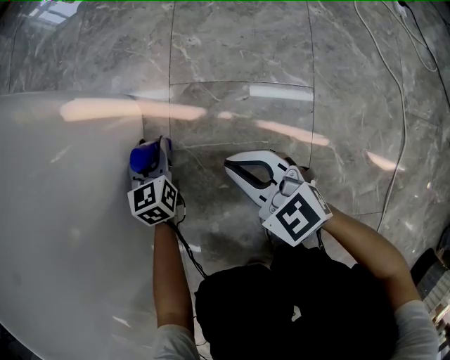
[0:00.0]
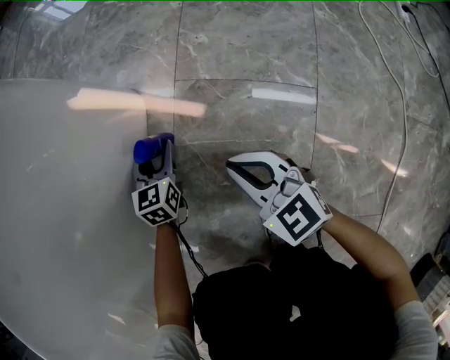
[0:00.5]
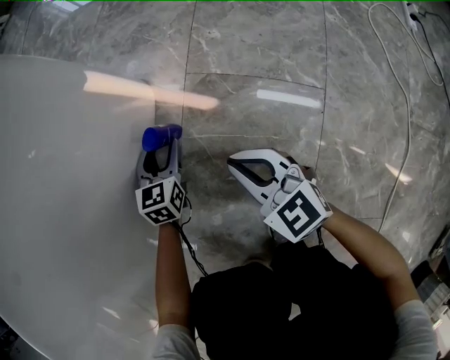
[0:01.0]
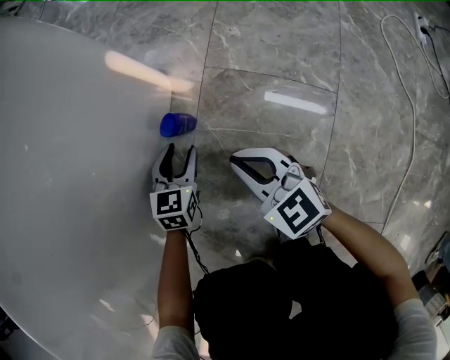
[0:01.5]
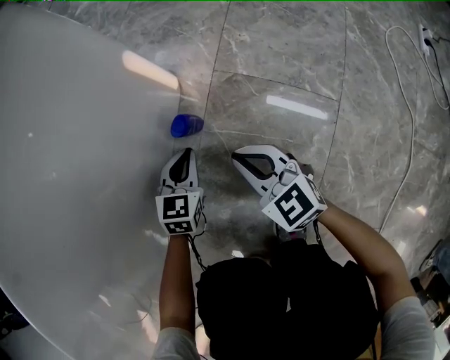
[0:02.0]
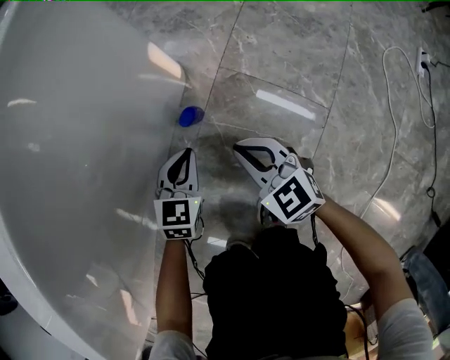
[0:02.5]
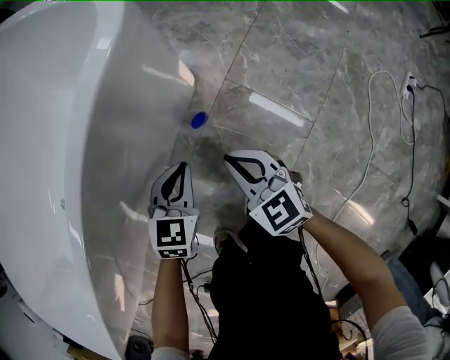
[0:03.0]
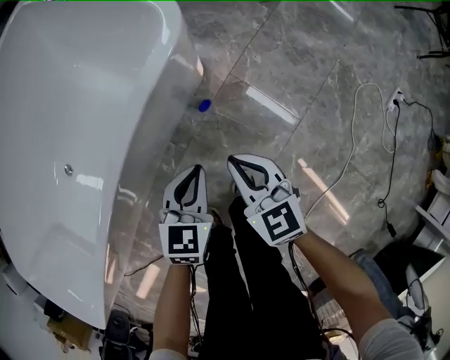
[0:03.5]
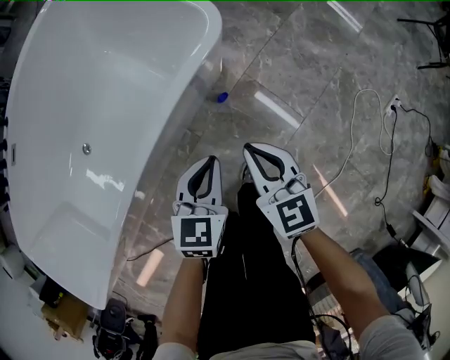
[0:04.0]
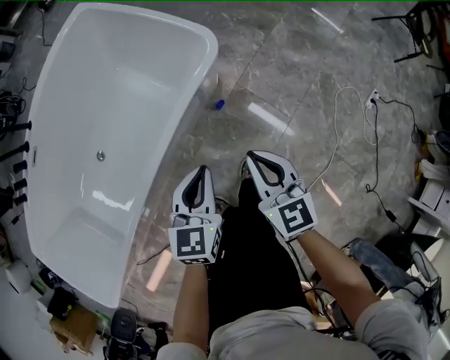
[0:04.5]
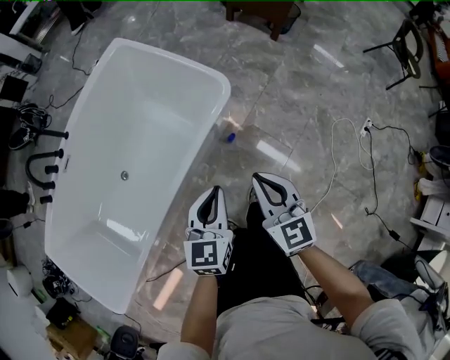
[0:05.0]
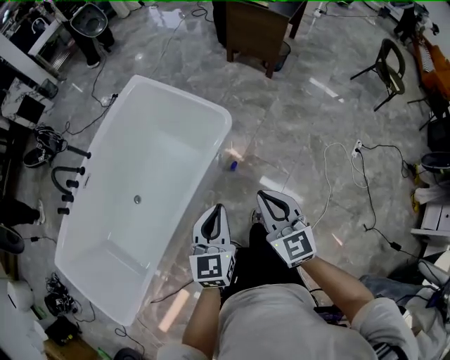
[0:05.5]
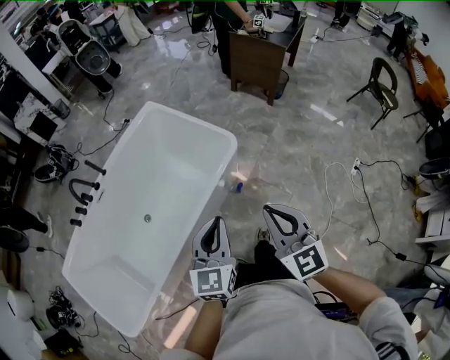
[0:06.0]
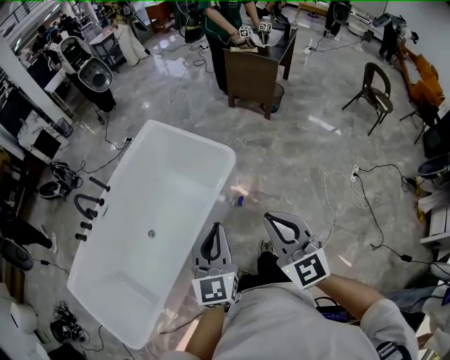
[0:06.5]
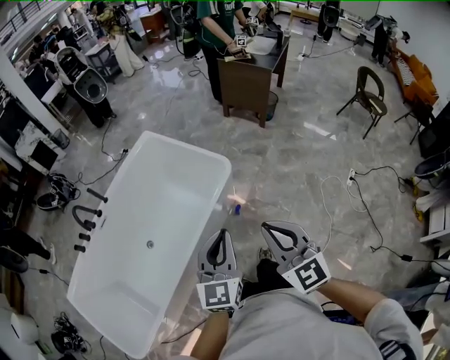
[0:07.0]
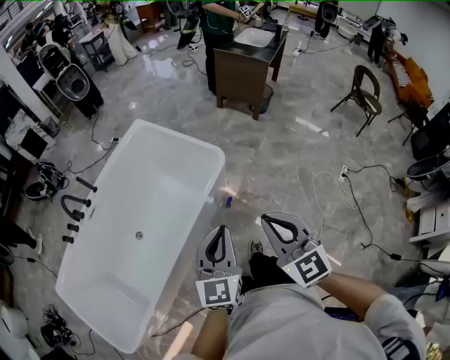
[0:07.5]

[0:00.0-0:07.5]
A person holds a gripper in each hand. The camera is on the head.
0:00.0 to 0:02.0: The left gripper goes roughly 10 cm backward, and closes up, while the right gripper goes roughly 5 cm to the left.
0:02.0 to 0:04.0: The two grippers go about 50 cm upward. The left gripper turns by about 20 degrees.
0:04.0 to 0:05.5: Both grippers travel together upward, roughly 40 cm.
0:05.5 to 0:07.5: The left gripper travels upward by roughly 10 cm; the right gripper goes roughly 15 cm upward and backward.

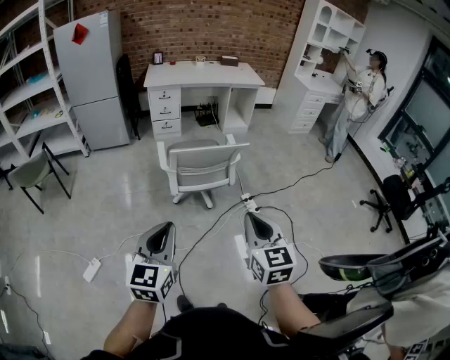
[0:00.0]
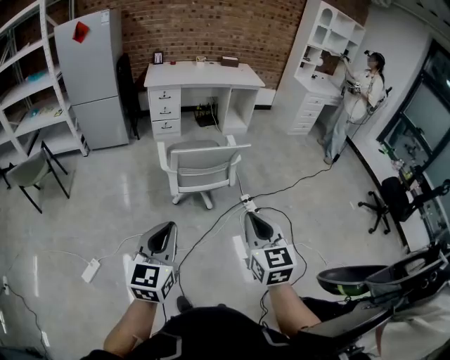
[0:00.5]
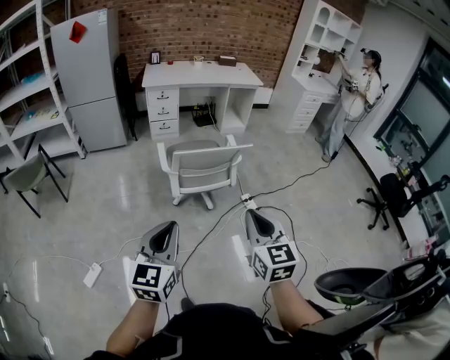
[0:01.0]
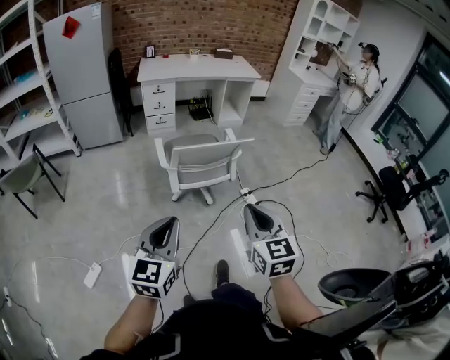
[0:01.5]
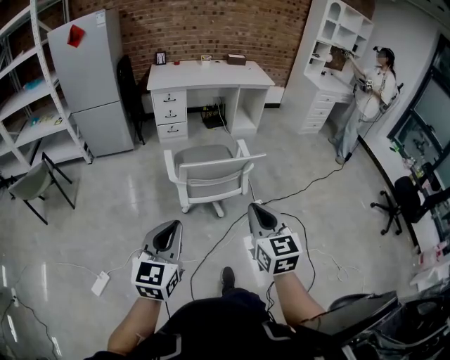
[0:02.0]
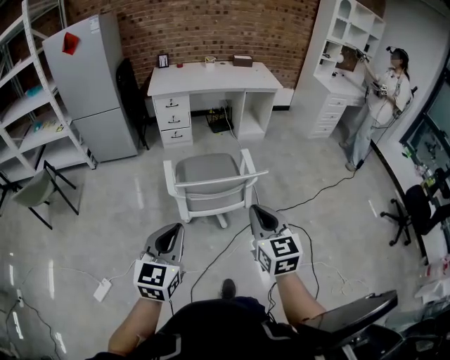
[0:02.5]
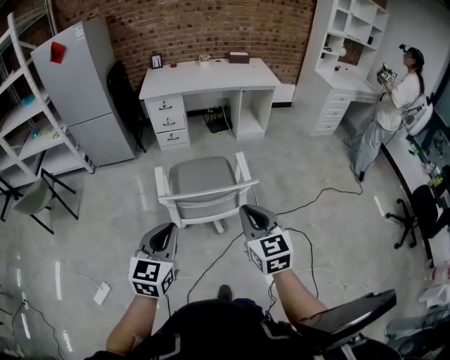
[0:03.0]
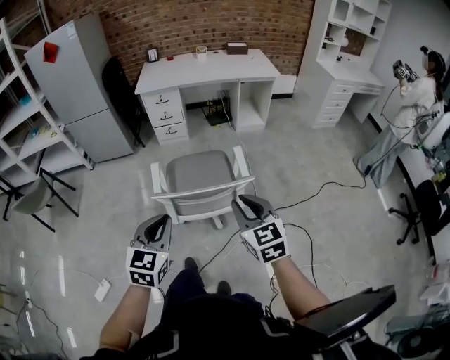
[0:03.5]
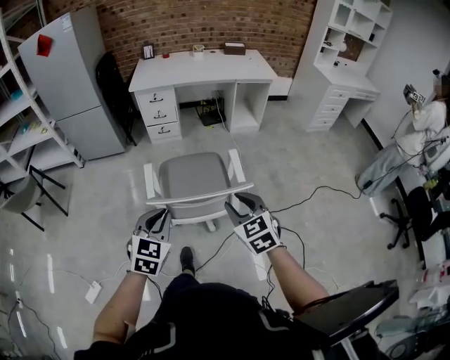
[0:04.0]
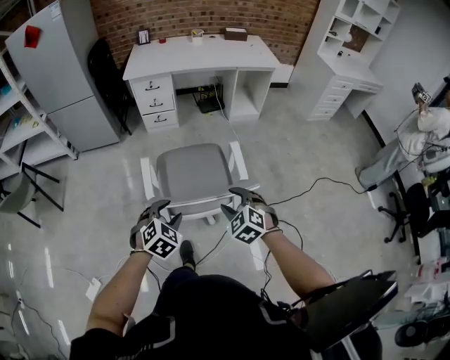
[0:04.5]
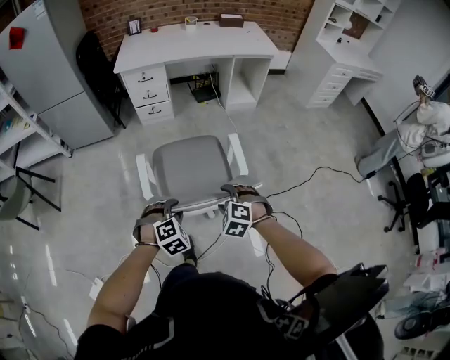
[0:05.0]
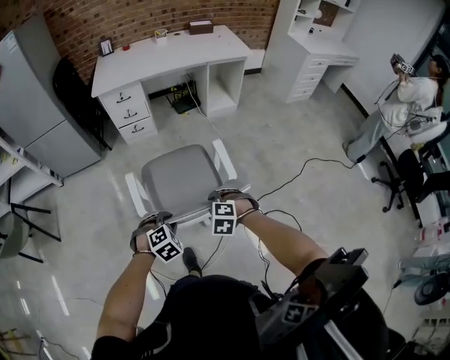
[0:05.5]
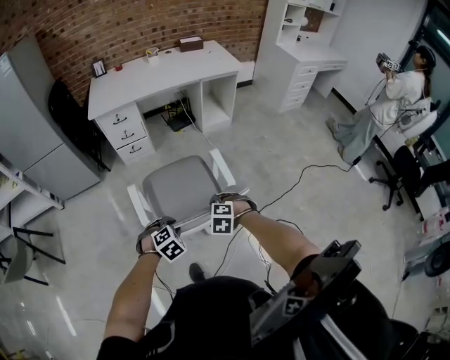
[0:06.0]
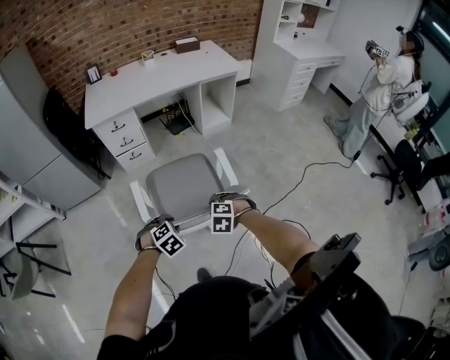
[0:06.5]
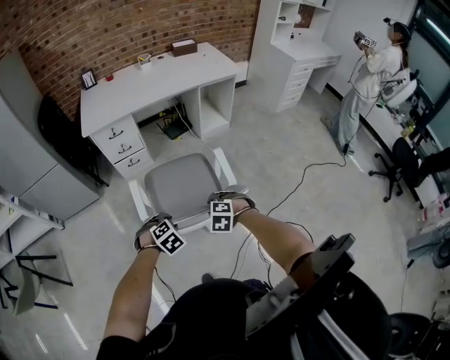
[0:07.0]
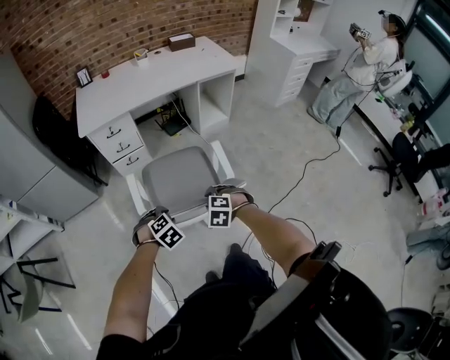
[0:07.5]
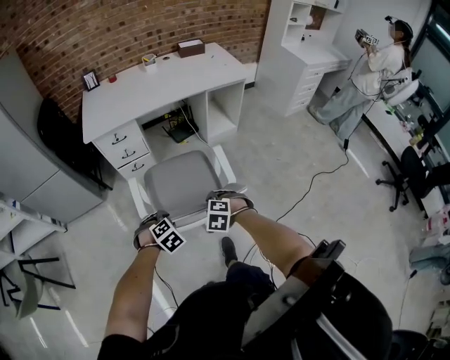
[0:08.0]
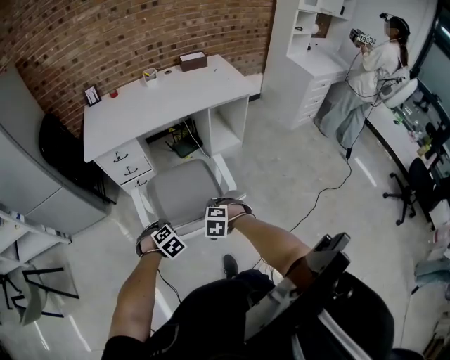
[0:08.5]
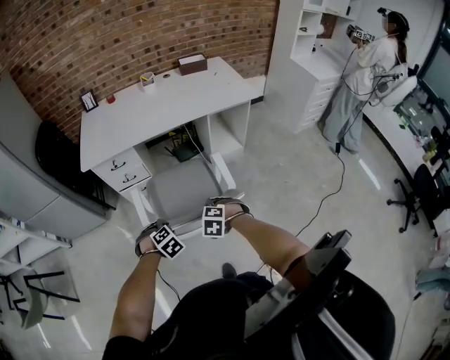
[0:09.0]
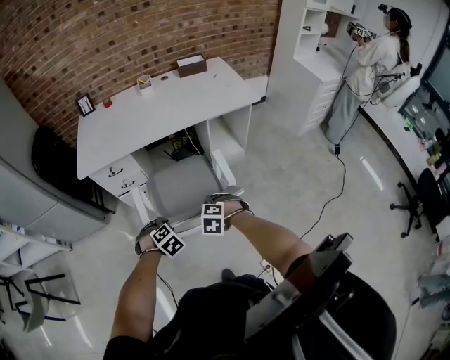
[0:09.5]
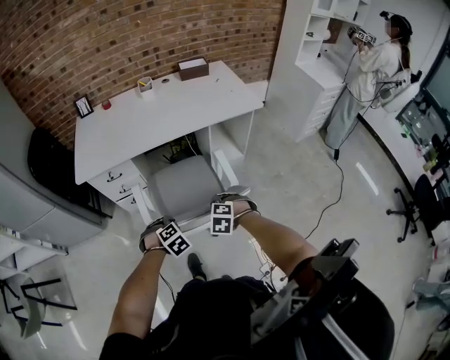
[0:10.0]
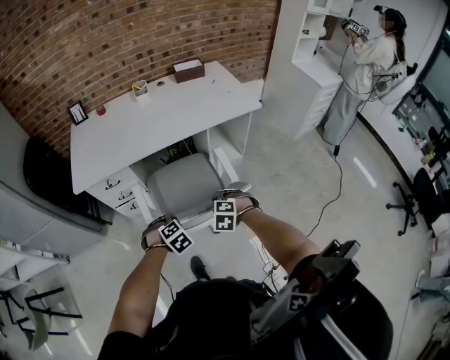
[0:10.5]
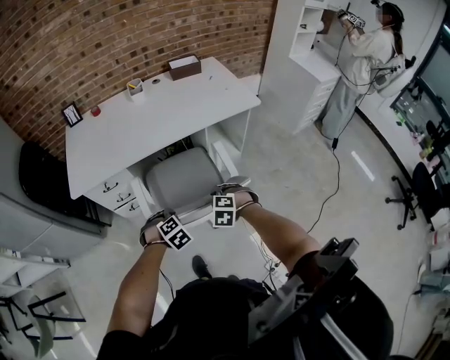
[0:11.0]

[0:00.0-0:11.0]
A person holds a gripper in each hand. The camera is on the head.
0:00.0 to 0:02.0: The left gripper heads forward, covering roughly 10 cm, while the right gripper travels forward and to the left by some 15 cm.
0:02.0 to 0:03.5: Both grippers travel together forward and to the right, roughly 25 cm.
0:03.5 to 0:05.5: The two grippers go approximately 30 cm downward and forward. The left gripper tips its fingers downward by approximately 40 degrees, and opens its fingers; the right gripper tips its fingers downward by approximately 50 degrees, and opens, then closes once more.
0:05.5 to 0:07.5: The two grippers go approximately 20 cm forward.
0:07.5 to 0:09.0: Both grippers move forward and to the right, roughly 20 cm.
0:09.0 to 0:11.0: The two grippers go approximately 20 cm forward and to the right.

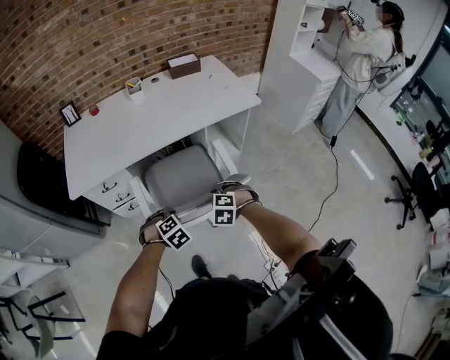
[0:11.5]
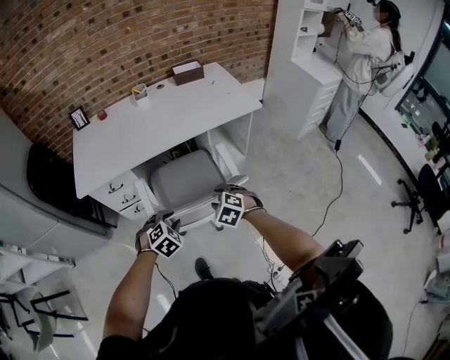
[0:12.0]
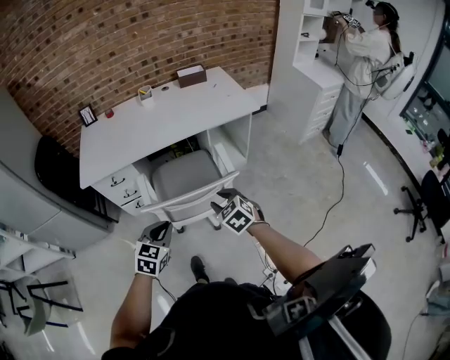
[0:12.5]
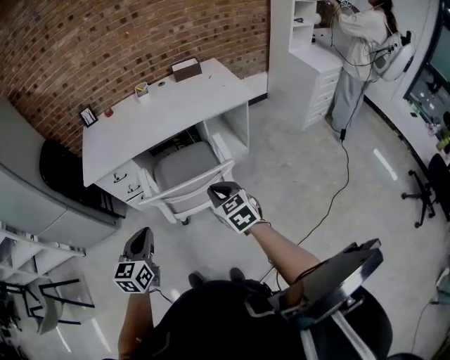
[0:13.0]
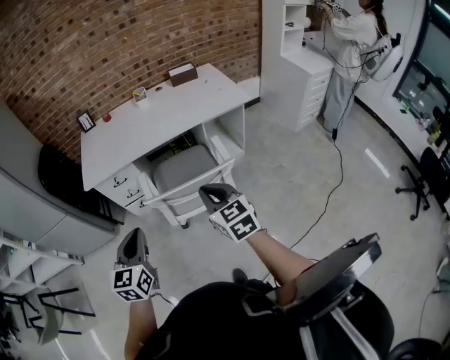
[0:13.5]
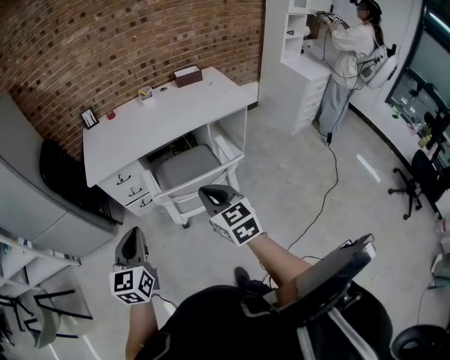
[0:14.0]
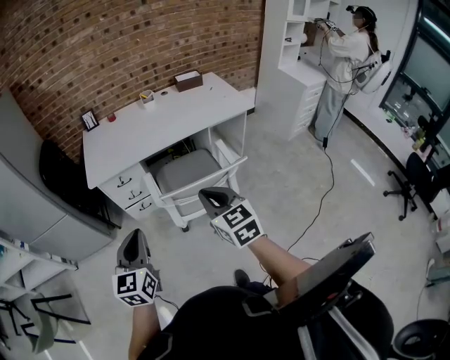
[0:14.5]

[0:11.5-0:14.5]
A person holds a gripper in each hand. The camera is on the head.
0:11.5 to 0:13.0: Both grippers travel together upward and backward, roughly 25 cm. The left gripper points its fingers about 50 degrees further upward, and closes its fingers; the right gripper tilts its fingers some 40 degrees upward, and closes its fingers.
0:13.0 to 0:14.5: Both grippers move to the left and upward, roughly 20 cm.

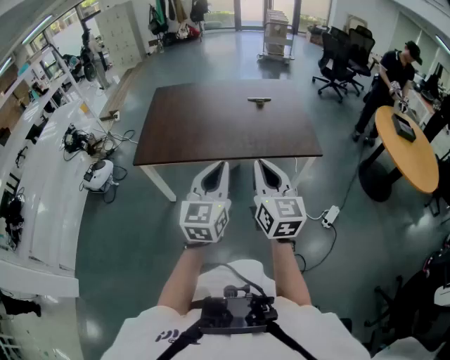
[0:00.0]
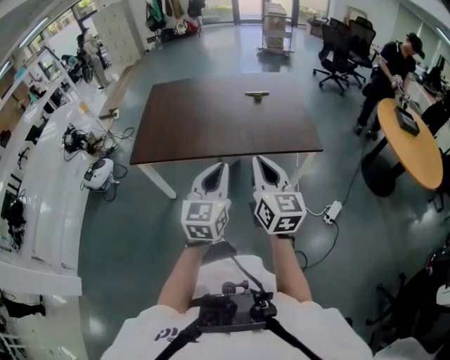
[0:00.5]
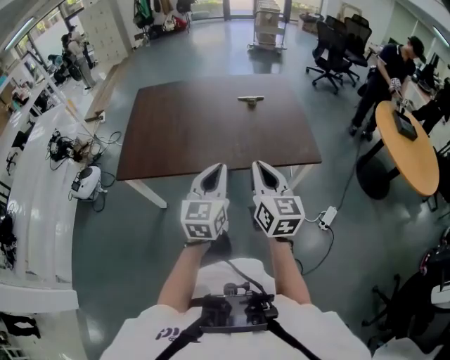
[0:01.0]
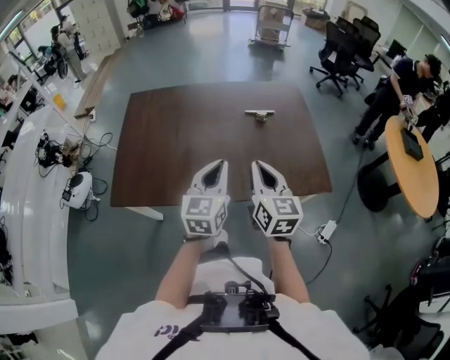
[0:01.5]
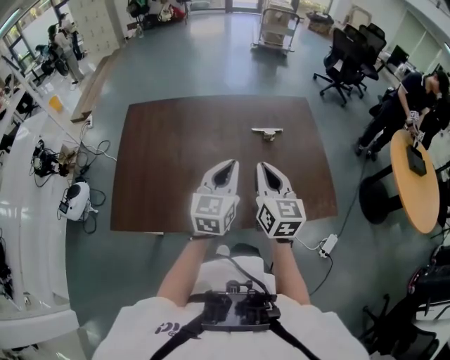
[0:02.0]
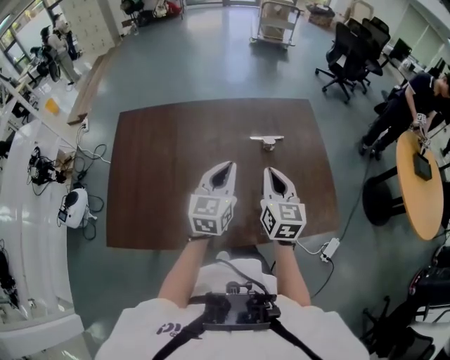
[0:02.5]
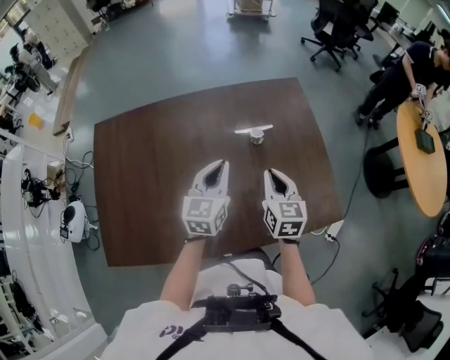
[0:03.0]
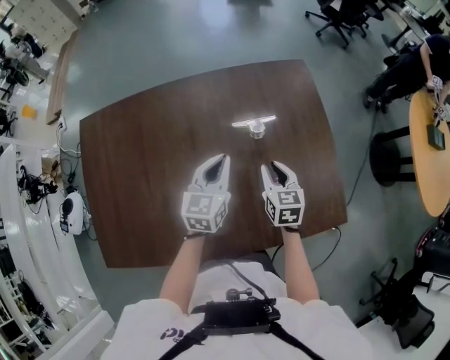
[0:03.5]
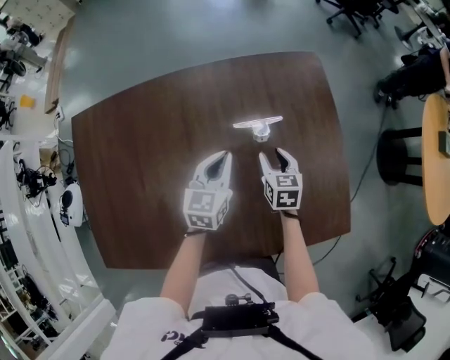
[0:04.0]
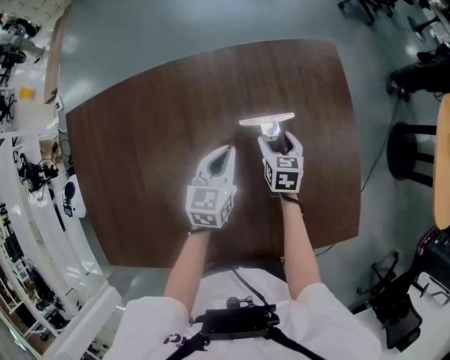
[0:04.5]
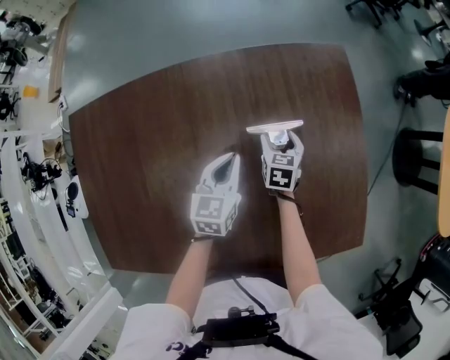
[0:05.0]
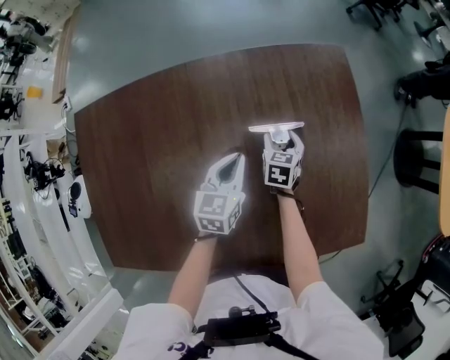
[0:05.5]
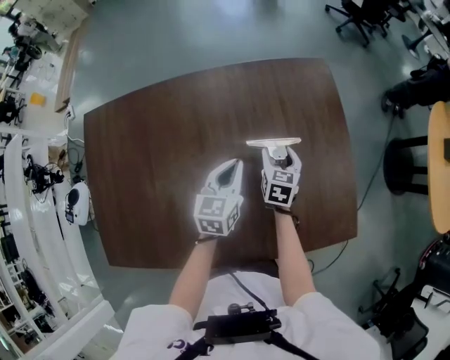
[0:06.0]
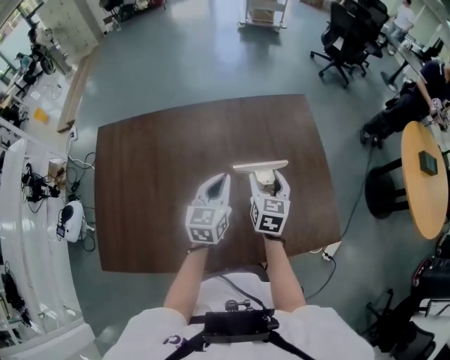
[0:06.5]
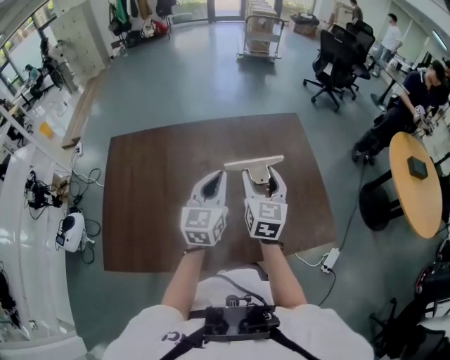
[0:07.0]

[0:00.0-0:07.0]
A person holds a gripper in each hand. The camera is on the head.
0:00.0 to 0:02.0: The two grippers travel together, forward, approximately 50 cm.
0:02.0 to 0:03.5: The right gripper heads downward, forward and to the right, covering some 35 cm, and swivels some 30 degrees. Meanwhile the left gripper moves forward and downward, approximately 30 cm.
0:03.5 to 0:05.0: The right gripper goes about 25 cm downward and forward, and opens. Meanwhile the left gripper is displaced downward and forward by approximately 15 cm.
0:05.0 to 0:07.0: Both grippers travel together upward and backward, roughly 40 cm. The left gripper changes its angle by approximately 30 degrees. The right gripper tips its fingers upward by about 40 degrees.
